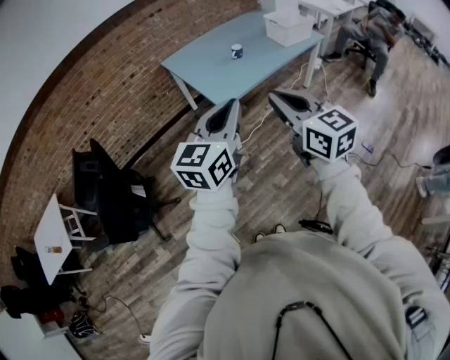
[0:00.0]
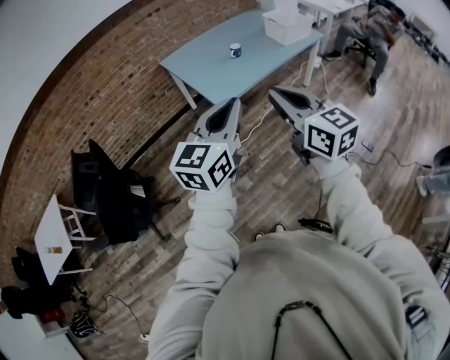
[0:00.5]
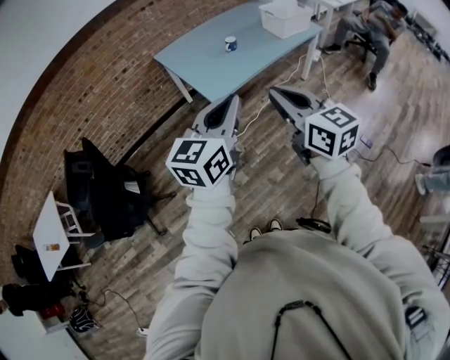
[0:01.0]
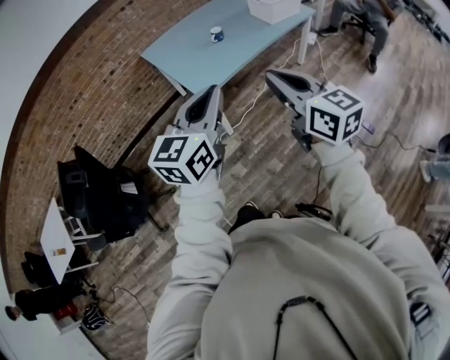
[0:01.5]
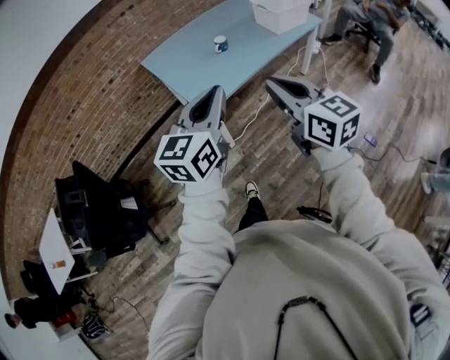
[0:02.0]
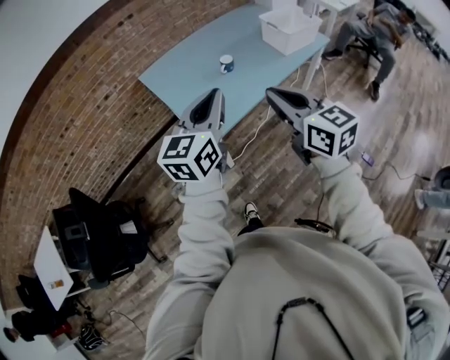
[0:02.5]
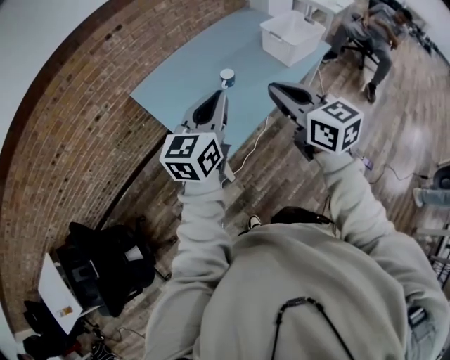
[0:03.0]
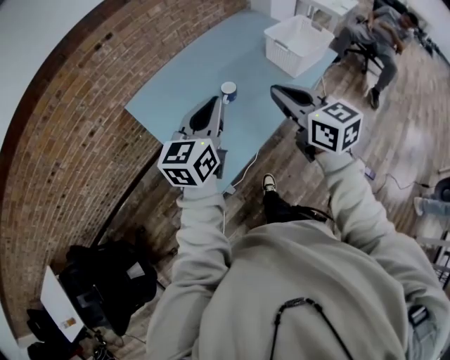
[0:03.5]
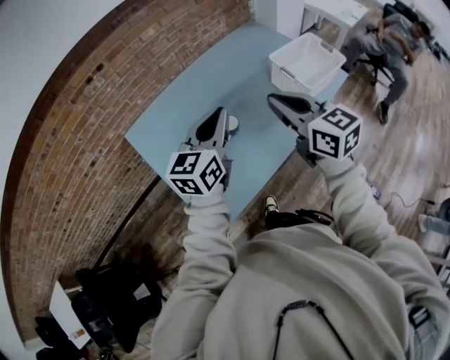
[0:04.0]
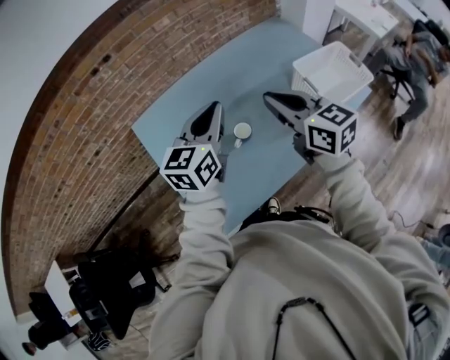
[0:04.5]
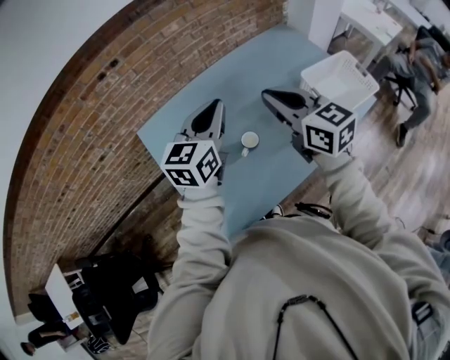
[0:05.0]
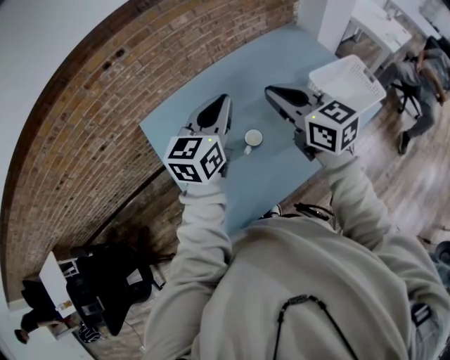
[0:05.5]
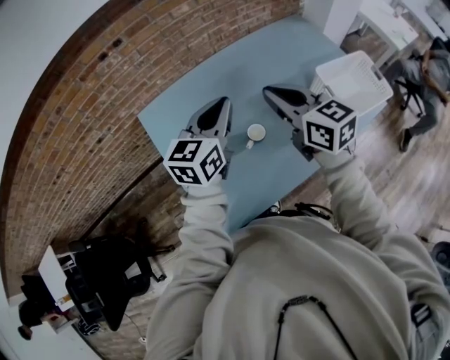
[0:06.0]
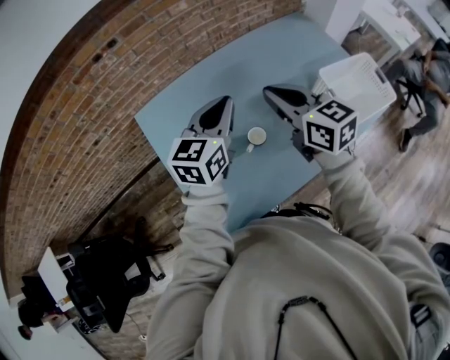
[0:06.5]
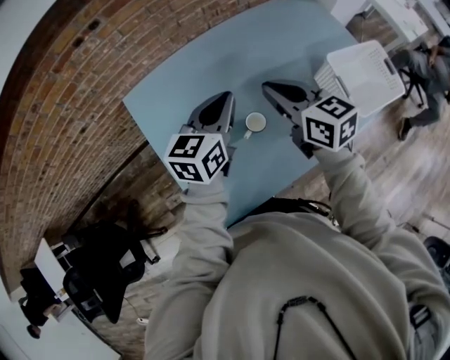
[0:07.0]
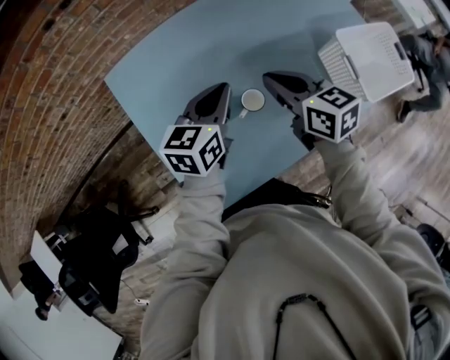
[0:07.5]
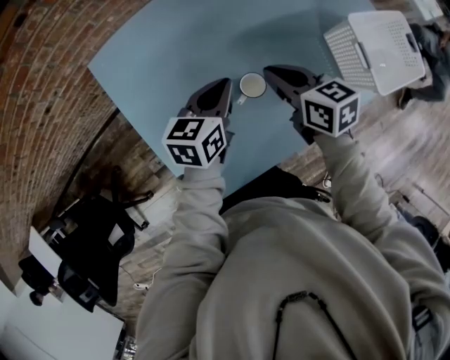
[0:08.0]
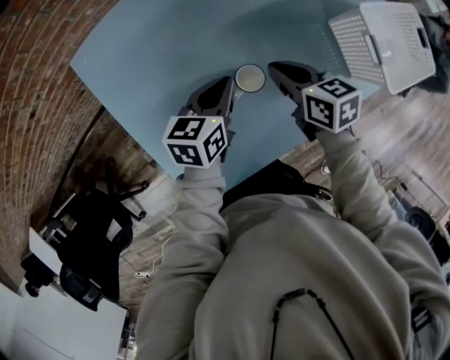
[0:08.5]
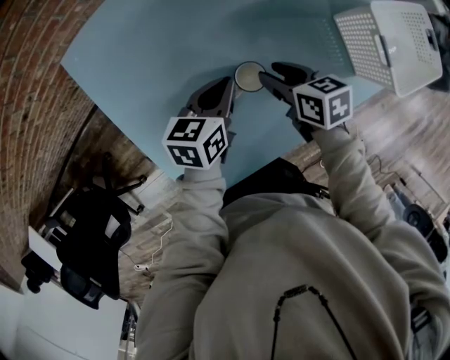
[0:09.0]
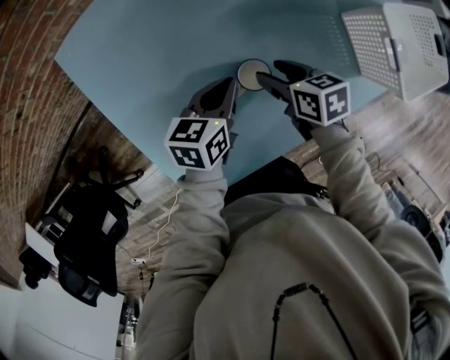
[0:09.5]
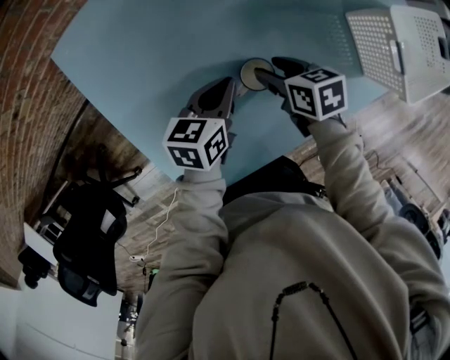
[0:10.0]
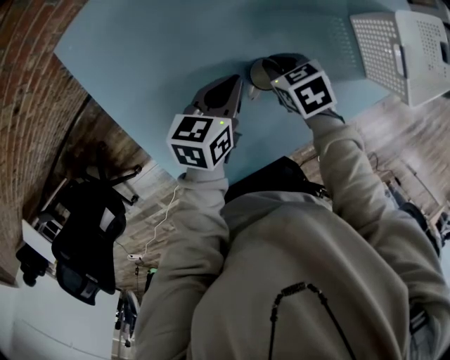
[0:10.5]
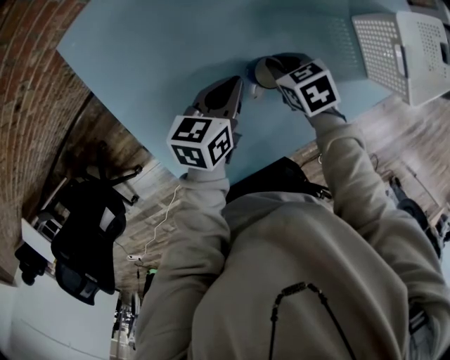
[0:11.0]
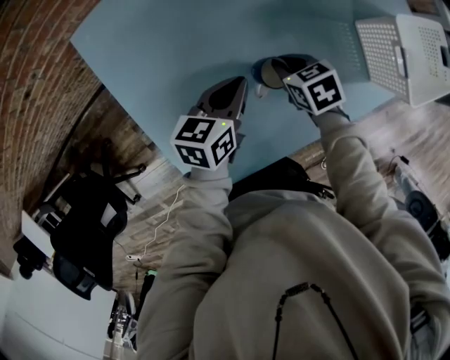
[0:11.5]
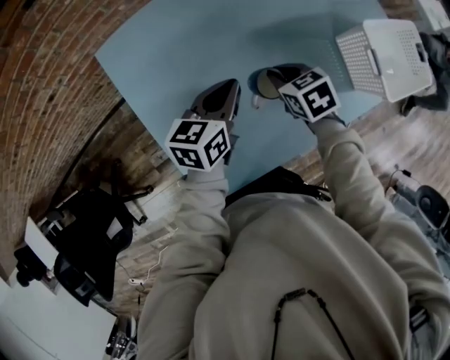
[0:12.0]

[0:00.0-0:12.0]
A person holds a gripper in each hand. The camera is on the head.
0:00.0 to 0:02.0: The grippers both shift forward and to the right by about 20 cm.
0:02.0 to 0:04.0: The pair of grippers is taken forward, some 50 cm.
0:04.0 to 0:06.0: Both grippers move forward, some 15 cm.
0:06.0 to 0:08.0: Both grippers move downward, approximately 25 cm. The right gripper rotates about 20 degrees. Meanwhile the left gripper turns by roughly 20 degrees.
0:08.0 to 0:10.0: Both grippers move downward, some 15 cm. The right gripper changes its angle by approximately 20 degrees, and opens.
0:10.0 to 0:12.0: Both grippers travel together upward, some 10 cm. The right gripper swivels roughly 20 degrees, and closes.

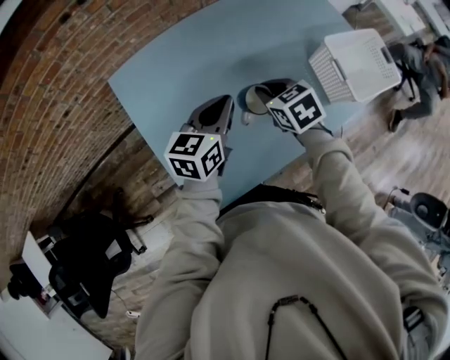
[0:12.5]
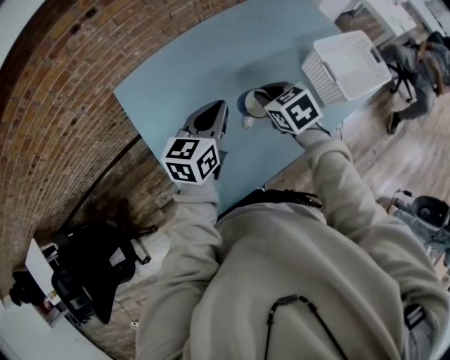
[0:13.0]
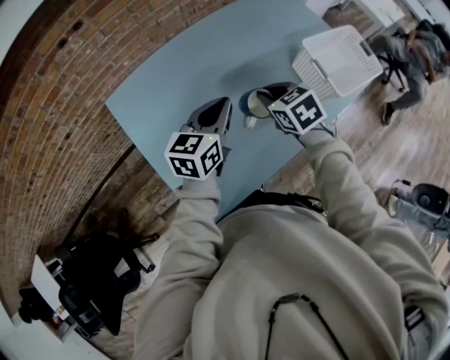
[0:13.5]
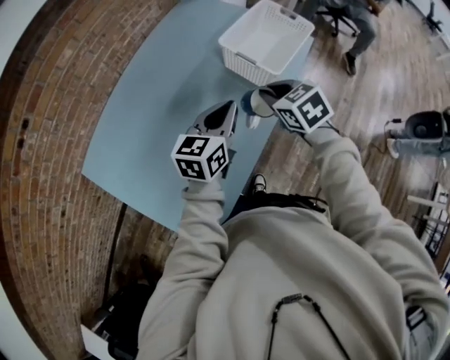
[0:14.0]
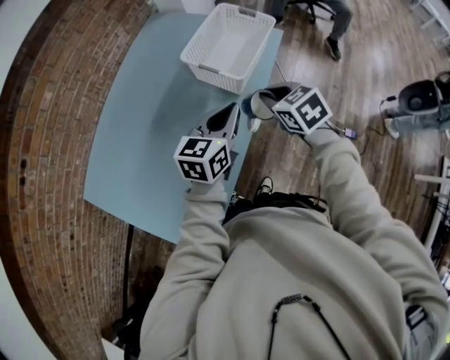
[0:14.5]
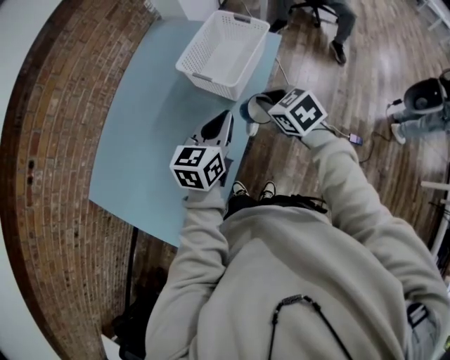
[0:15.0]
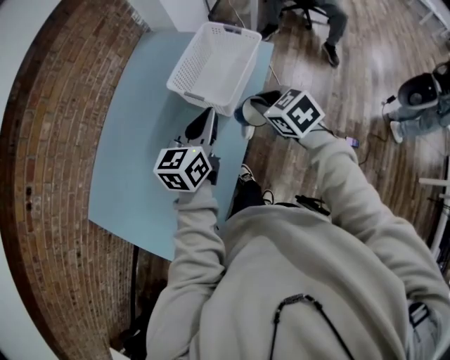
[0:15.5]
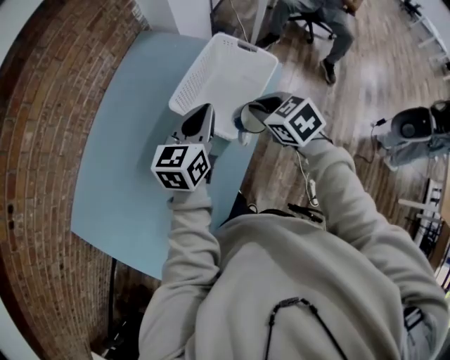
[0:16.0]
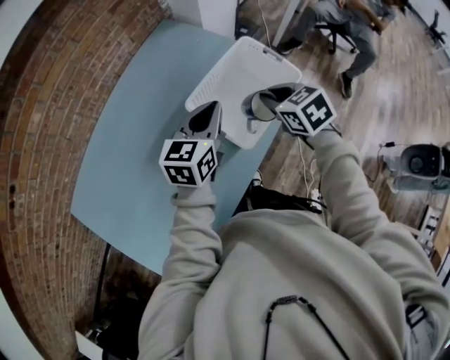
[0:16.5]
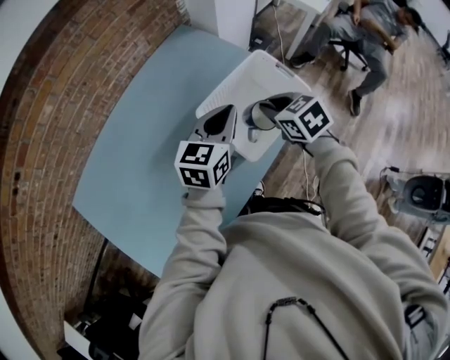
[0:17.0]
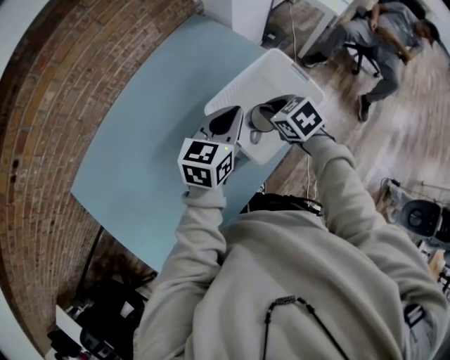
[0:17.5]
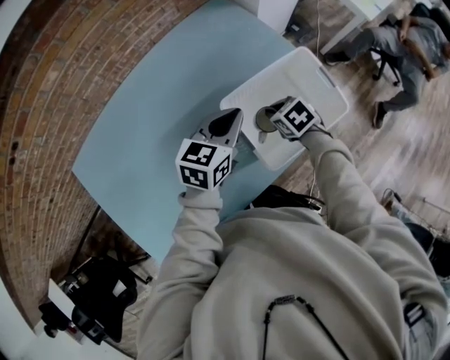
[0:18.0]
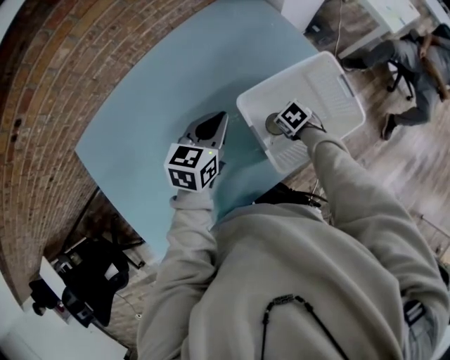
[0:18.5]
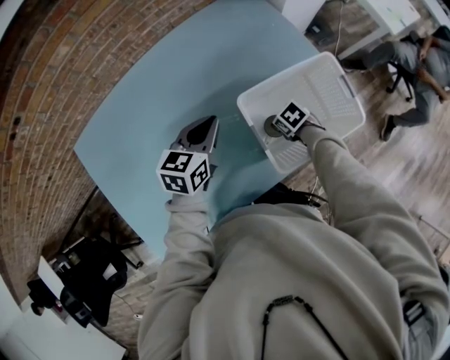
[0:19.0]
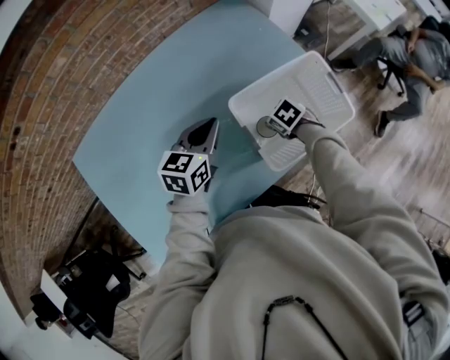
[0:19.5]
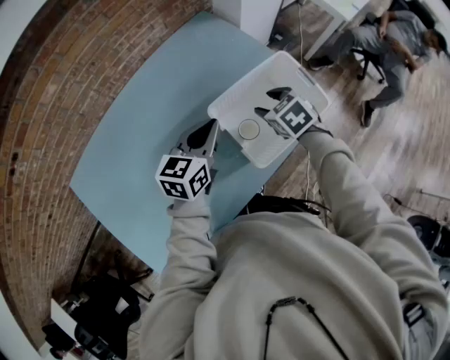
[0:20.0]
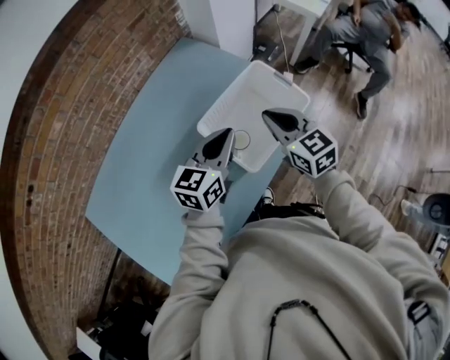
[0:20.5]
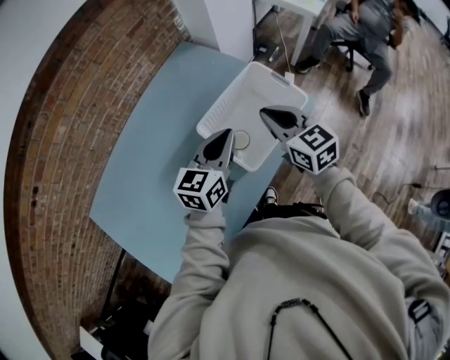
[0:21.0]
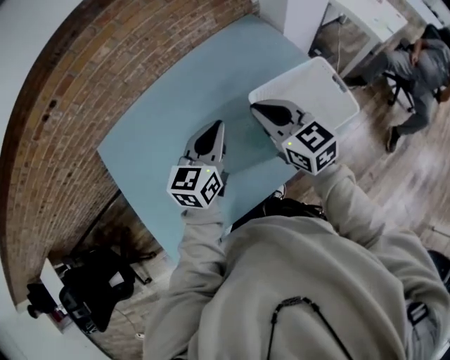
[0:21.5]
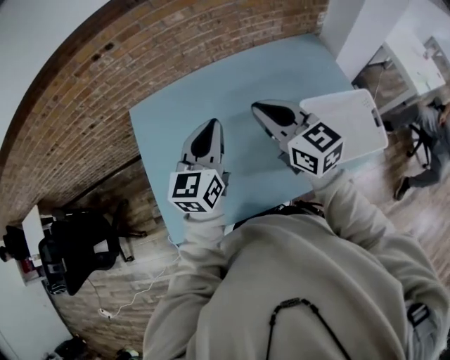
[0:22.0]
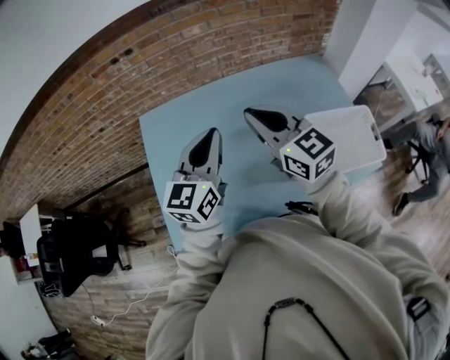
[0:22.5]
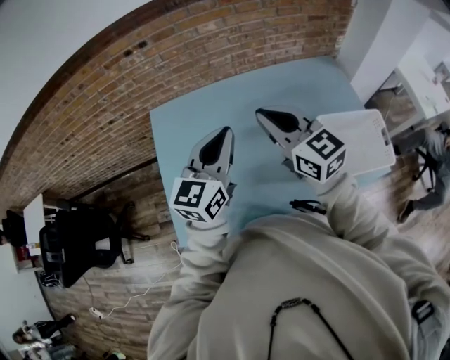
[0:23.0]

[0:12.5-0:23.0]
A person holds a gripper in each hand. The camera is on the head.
0:12.5 to 0:14.5: The right gripper moves some 35 cm, and changes its angle by approximately 30 degrees. Meanwhile the left gripper shifts by roughly 35 cm, and turns by roughly 40 degrees.
0:14.5 to 0:16.5: The two grippers go roughly 25 cm forward.
0:16.5 to 0:19.0: The right gripper travels downward by some 30 cm, turns by about 40 degrees, and opens up, while the left gripper ends up roughly 15 cm from where it was, and changes its angle by some 20 degrees.
0:19.0 to 0:21.0: The left gripper moves about 20 cm, and changes its angle by about 20 degrees, while the right gripper travels upward by about 35 cm, tilts its fingers roughly 50 degrees upward, and closes its fingers.
0:21.0 to 0:23.0: The left gripper changes place by some 40 cm, and turns by some 50 degrees. The right gripper shifts by about 40 cm, and swivels about 50 degrees.

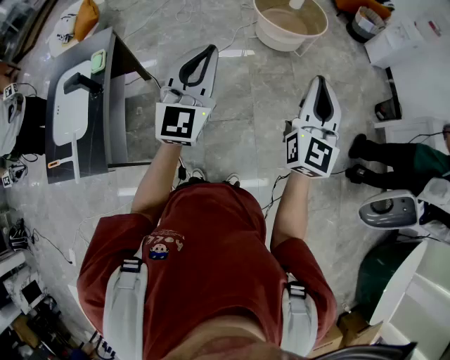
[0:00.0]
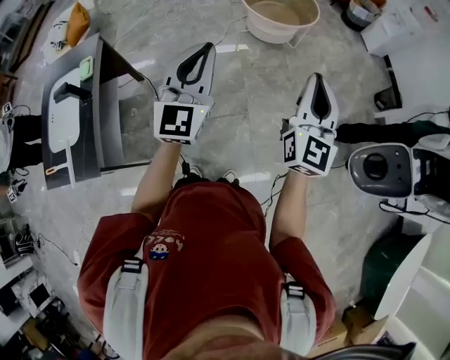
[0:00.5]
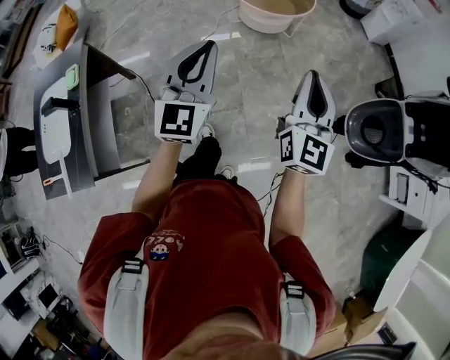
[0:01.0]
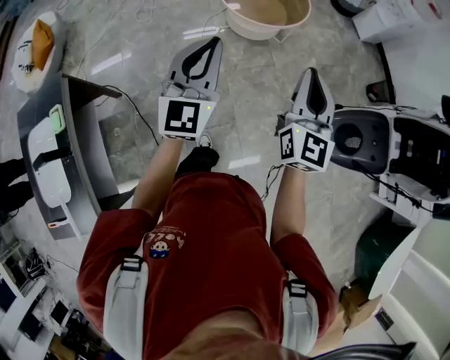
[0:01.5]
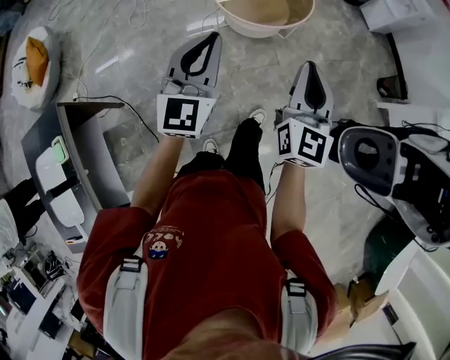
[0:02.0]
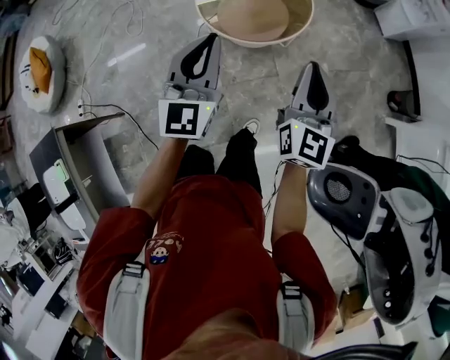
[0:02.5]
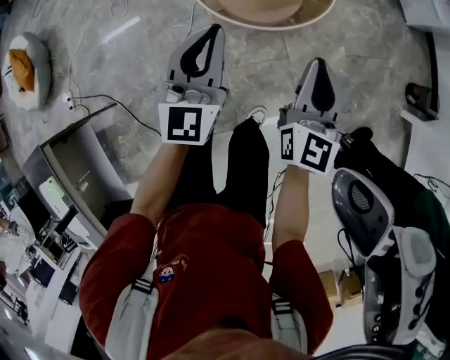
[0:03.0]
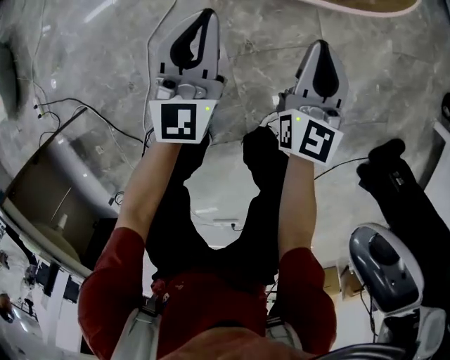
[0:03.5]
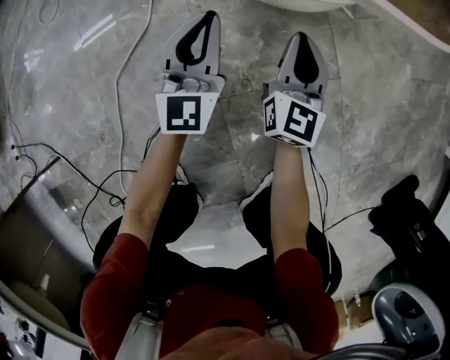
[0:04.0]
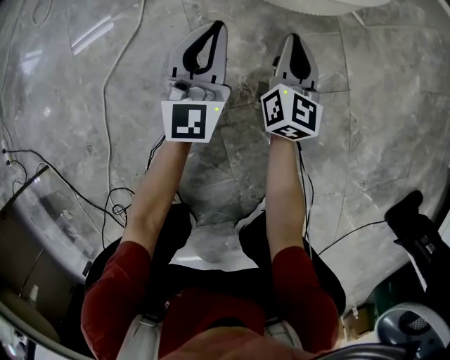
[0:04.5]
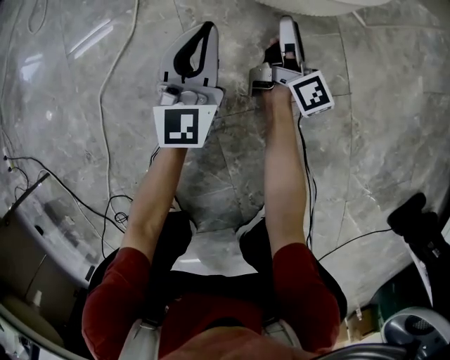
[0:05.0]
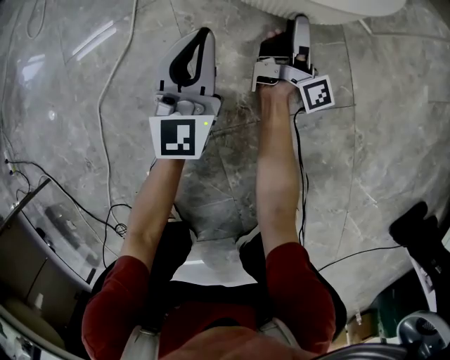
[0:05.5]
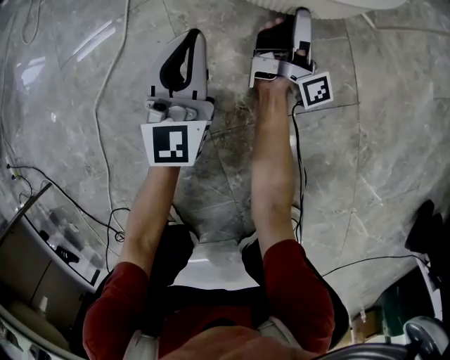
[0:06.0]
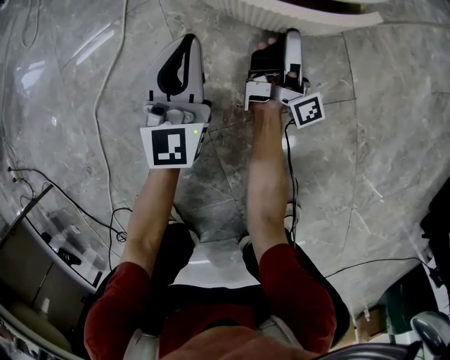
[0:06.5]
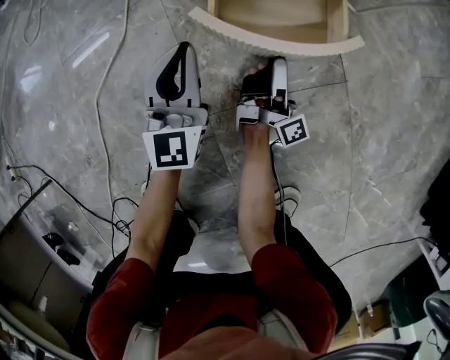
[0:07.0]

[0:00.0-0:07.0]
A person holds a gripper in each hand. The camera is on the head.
0:00.0 to 0:02.0: The two grippers travel together, forward, approximately 40 cm.
0:02.0 to 0:03.5: Both grippers move downward and forward, approximately 60 cm.
0:03.5 to 0:05.0: The grippers both shift downward by roughly 35 cm. The right gripper rolls clockwise, seen from behind, by about 60 degrees, and opens its fingers.
0:05.0 to 0:07.0: The right gripper shifts approximately 10 cm backward, and swivels some 30 degrees.
